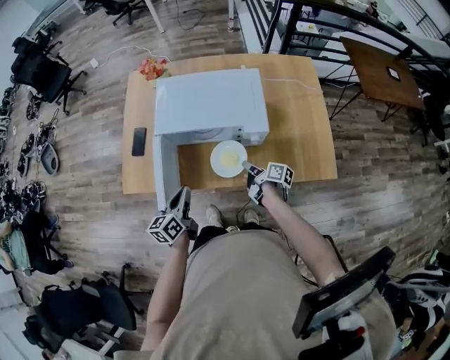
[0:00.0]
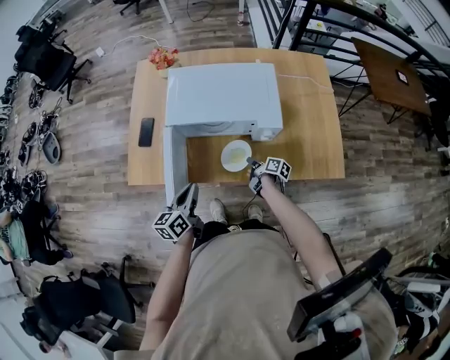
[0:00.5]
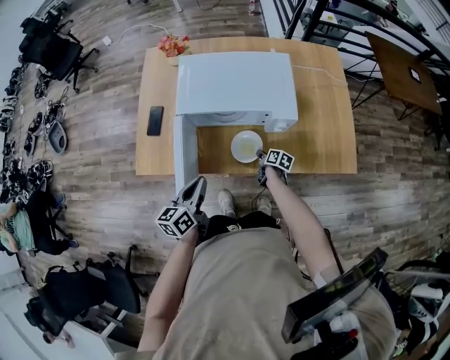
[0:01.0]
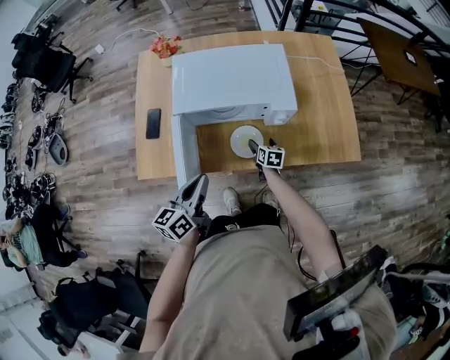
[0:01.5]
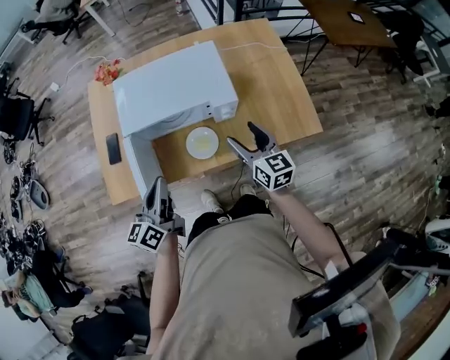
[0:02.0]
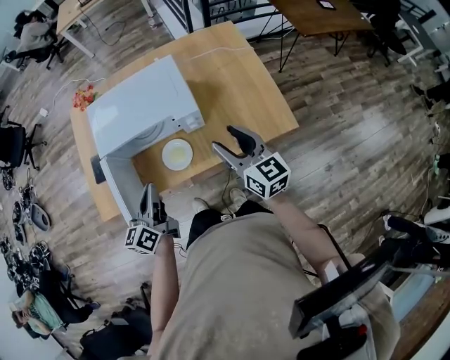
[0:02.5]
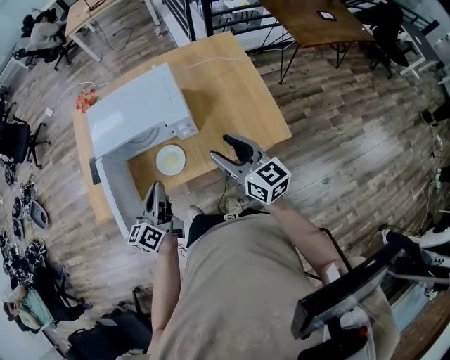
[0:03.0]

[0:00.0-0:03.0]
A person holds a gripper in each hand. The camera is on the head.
0:00.0 to 0:01.5: The right gripper moves downward, roughly 15 cm, rotates some 50 degrees, and opens up.
0:01.5 to 0:03.0: The right gripper shifts about 40 cm upward and to the right, tips its fingers upward by roughly 40 degrees, and closes. Meanwhile the left gripper is displaced to the right by about 15 cm.

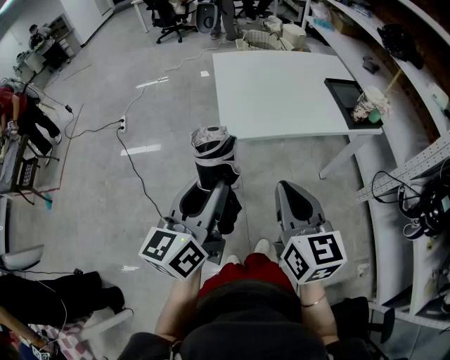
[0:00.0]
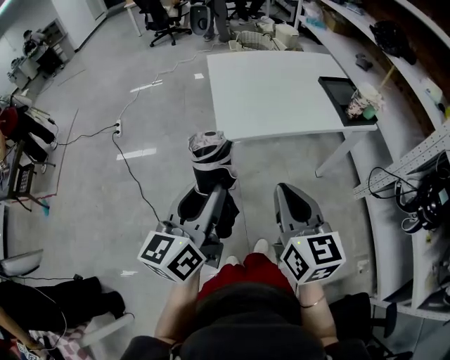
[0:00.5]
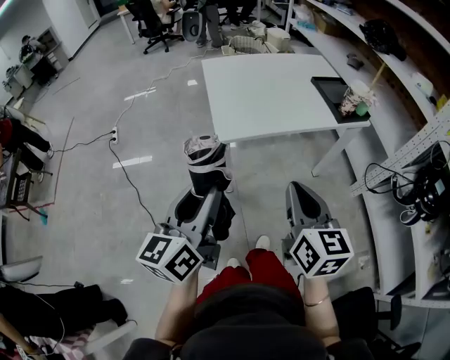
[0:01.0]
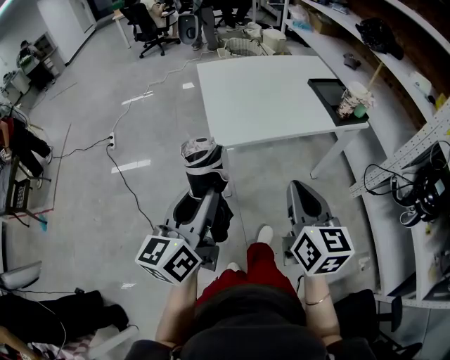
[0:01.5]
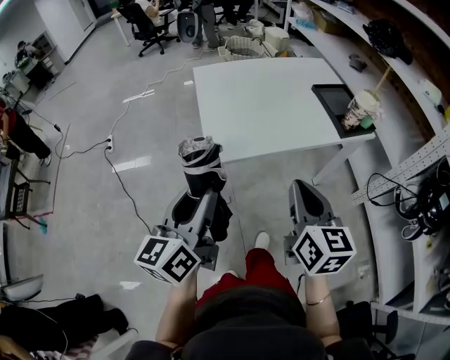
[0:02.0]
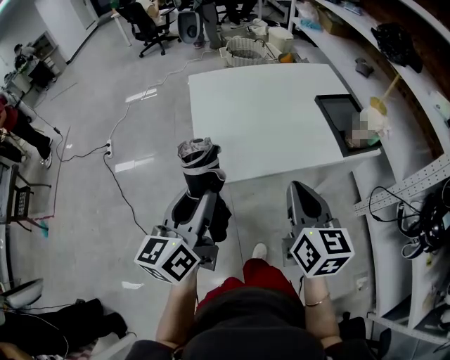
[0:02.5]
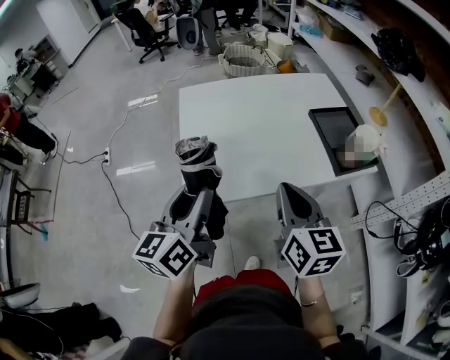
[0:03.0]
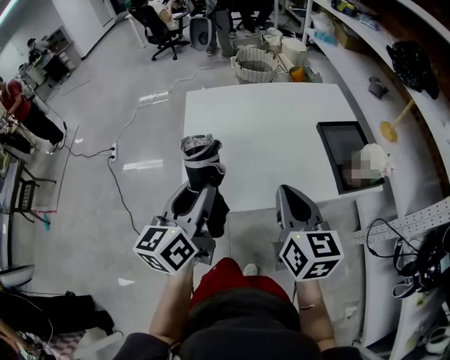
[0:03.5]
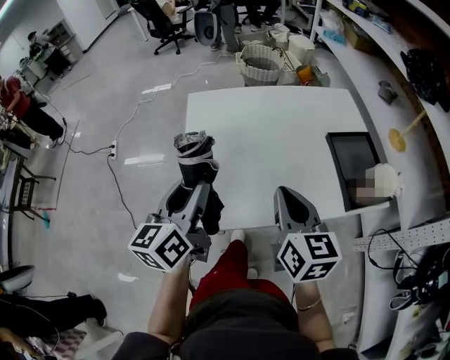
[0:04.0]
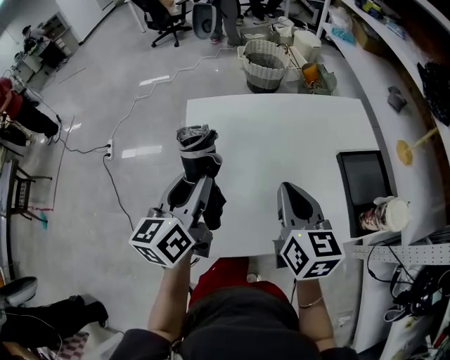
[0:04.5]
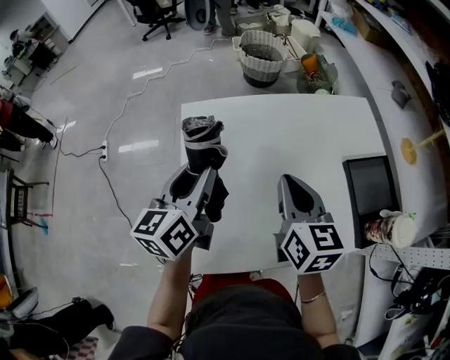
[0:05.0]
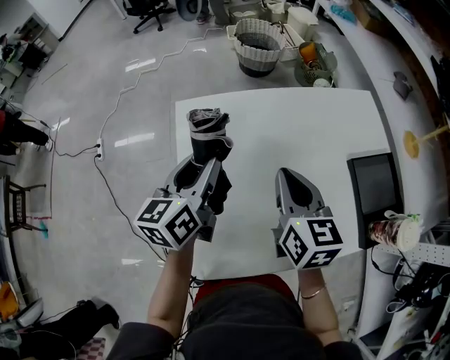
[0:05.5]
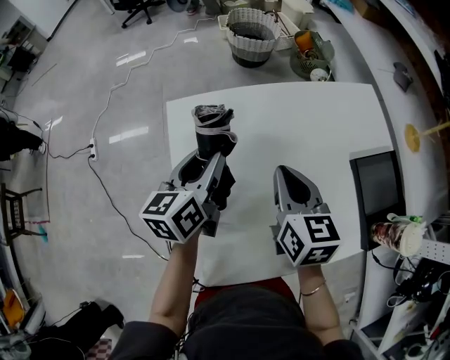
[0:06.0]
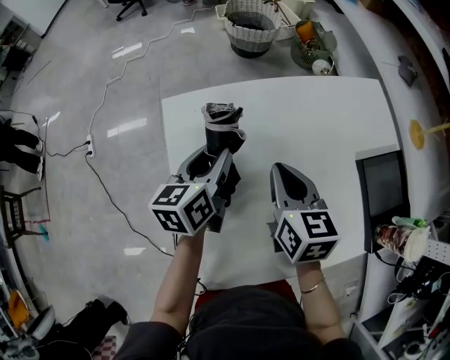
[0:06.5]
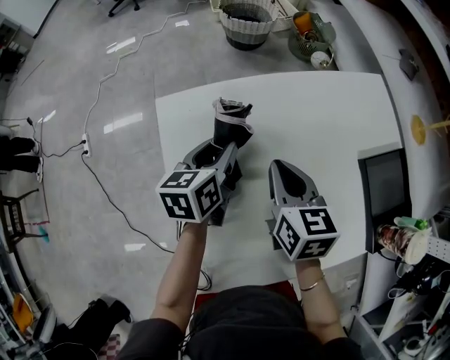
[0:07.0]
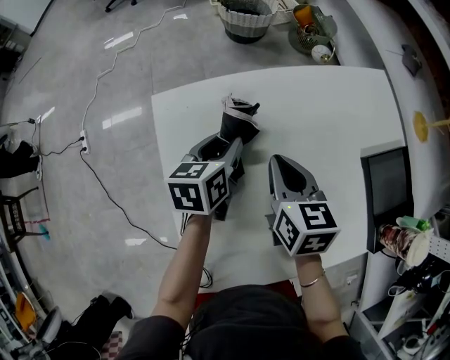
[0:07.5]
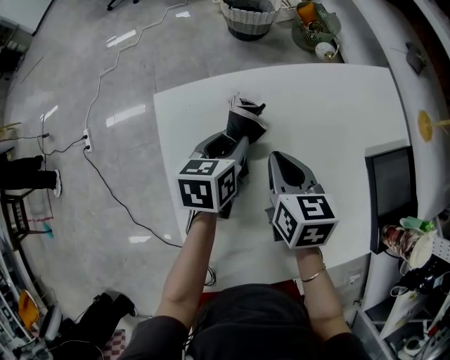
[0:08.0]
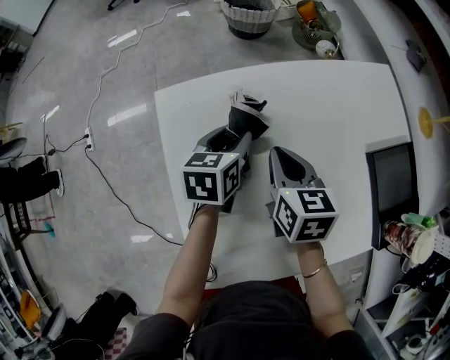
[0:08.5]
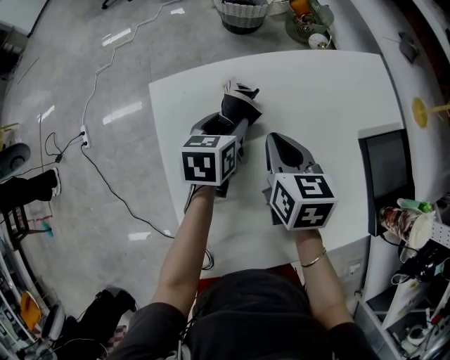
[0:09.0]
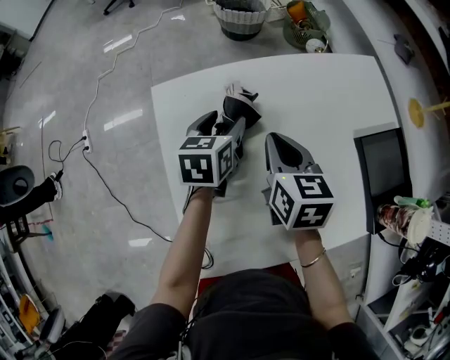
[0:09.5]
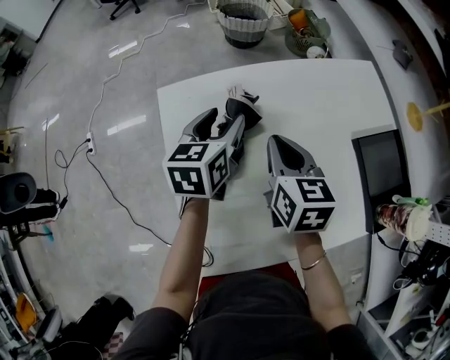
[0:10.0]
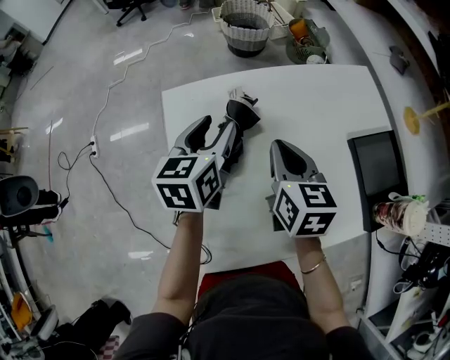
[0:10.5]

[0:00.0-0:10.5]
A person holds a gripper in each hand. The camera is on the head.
0:00.0 to 0:02.0: The left gripper shifts roughly 10 cm forward; the right gripper goes approximately 10 cm forward and to the right.
0:02.0 to 0:04.0: The grippers both shift forward by about 25 cm.
0:04.0 to 0:06.5: The left gripper is displaced forward and downward by some 35 cm, and swivels about 20 degrees, while the right gripper heads forward, covering some 25 cm.
0:06.5 to 0:08.5: The two grippers go some 5 cm downward.
0:08.5 to 0:10.5: The right gripper heads upward, covering approximately 10 cm. The left gripper travels upward by some 10 cm.

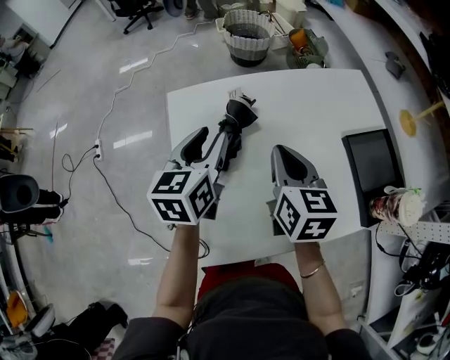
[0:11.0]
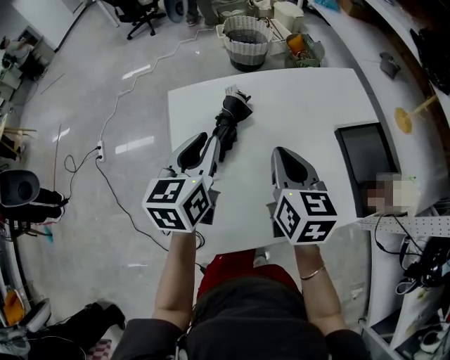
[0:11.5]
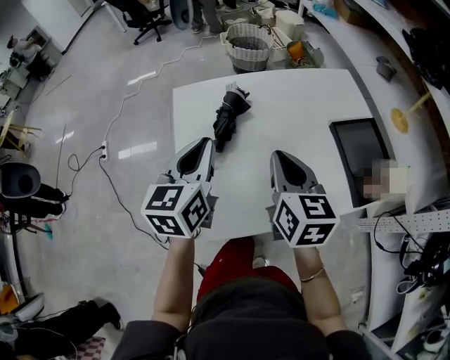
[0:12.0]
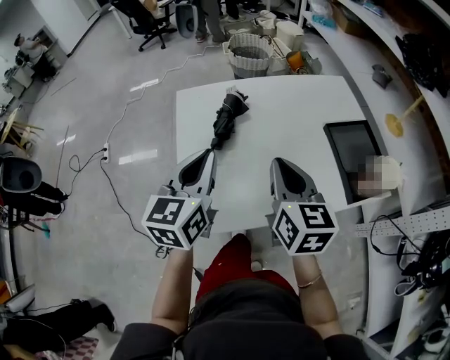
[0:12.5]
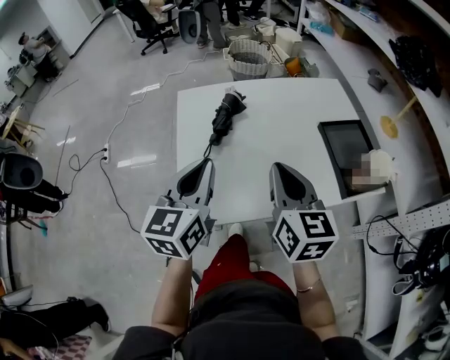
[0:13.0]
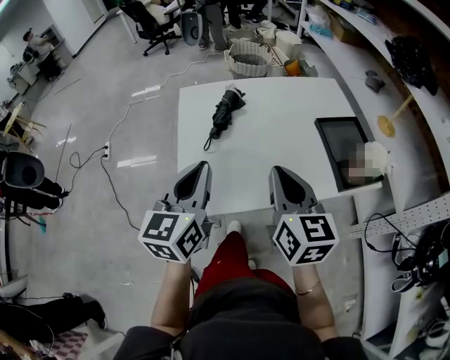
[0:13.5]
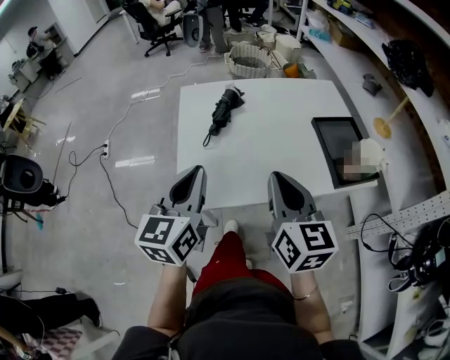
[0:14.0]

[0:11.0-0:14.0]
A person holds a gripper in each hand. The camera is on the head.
0:11.0 to 0:12.5: Both grippers travel together backward, some 15 cm. The left gripper closes.
0:12.5 to 0:14.0: The two grippers go some 15 cm backward.

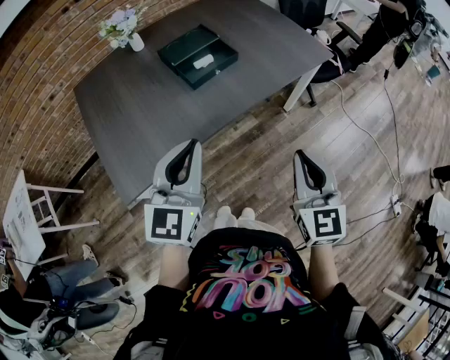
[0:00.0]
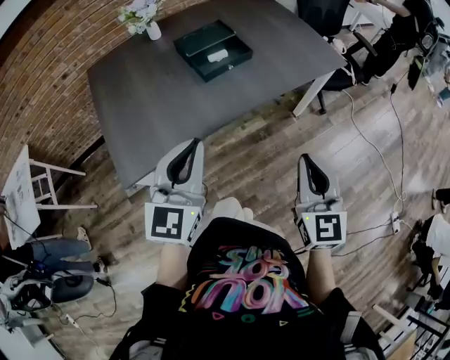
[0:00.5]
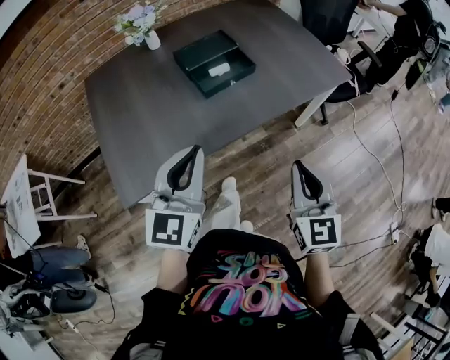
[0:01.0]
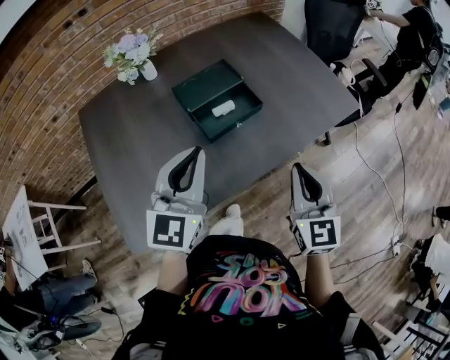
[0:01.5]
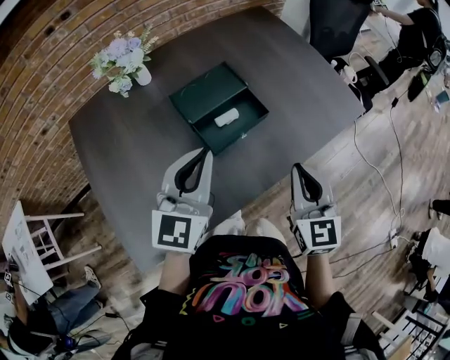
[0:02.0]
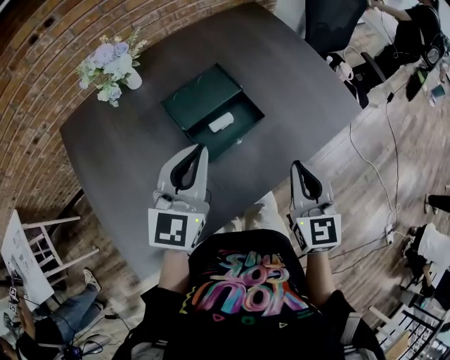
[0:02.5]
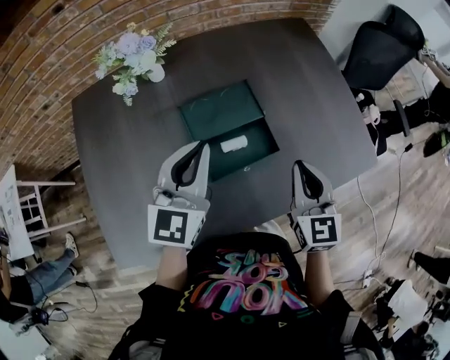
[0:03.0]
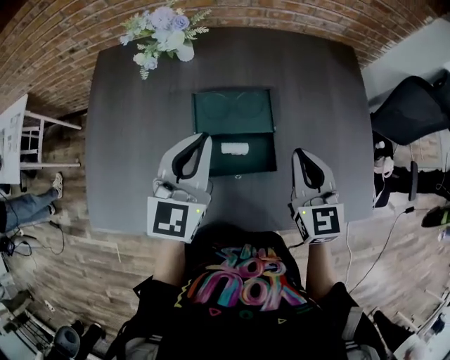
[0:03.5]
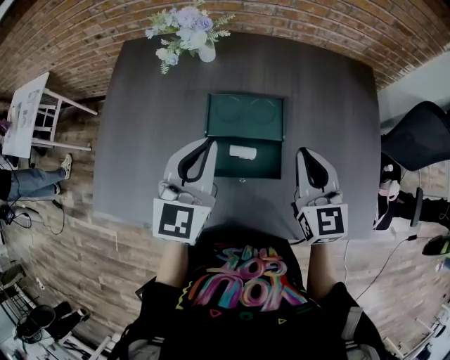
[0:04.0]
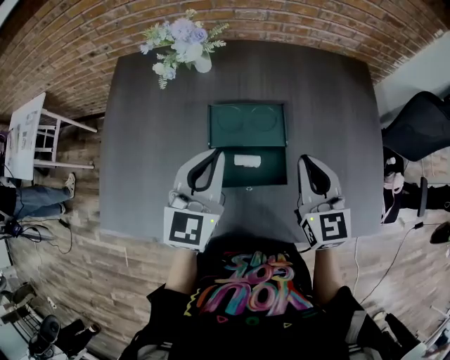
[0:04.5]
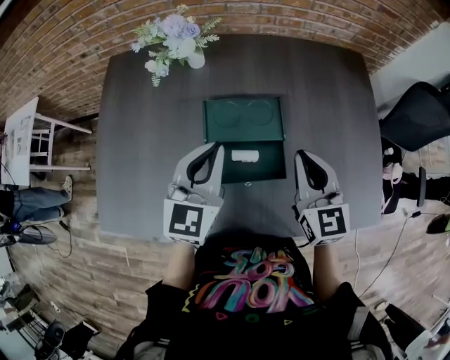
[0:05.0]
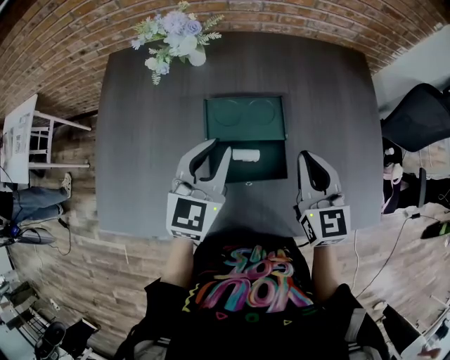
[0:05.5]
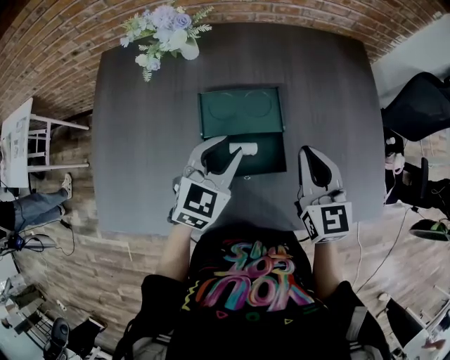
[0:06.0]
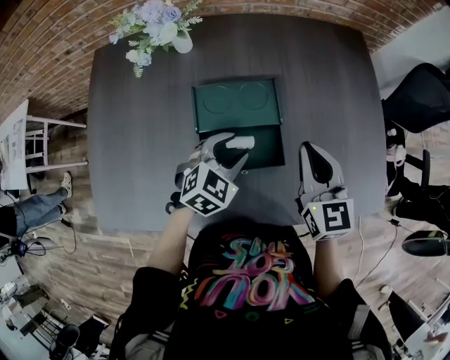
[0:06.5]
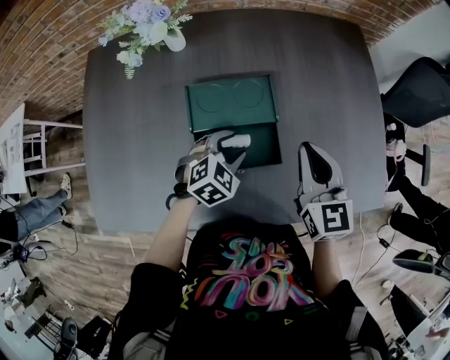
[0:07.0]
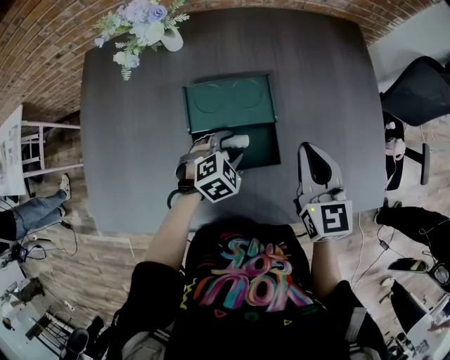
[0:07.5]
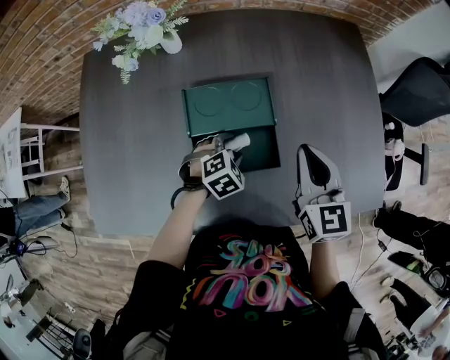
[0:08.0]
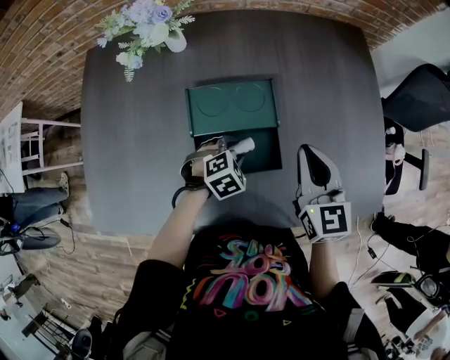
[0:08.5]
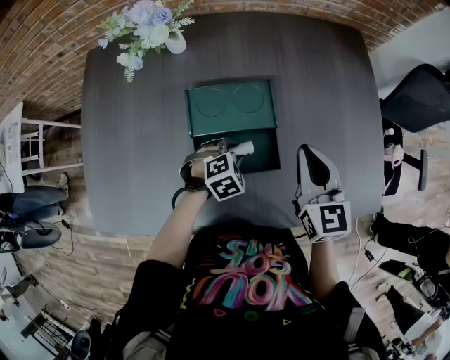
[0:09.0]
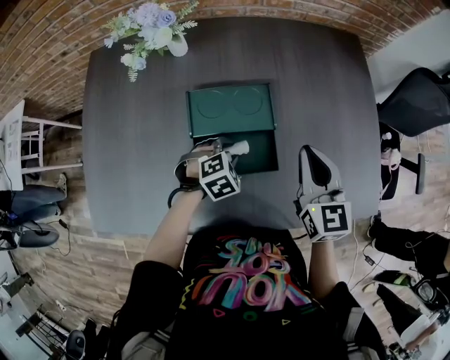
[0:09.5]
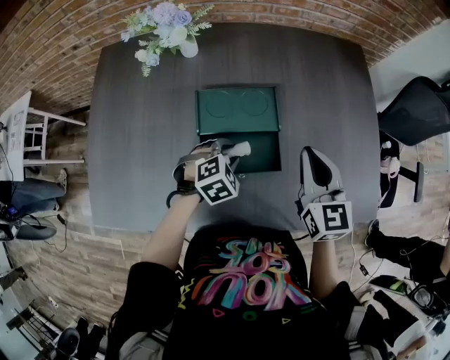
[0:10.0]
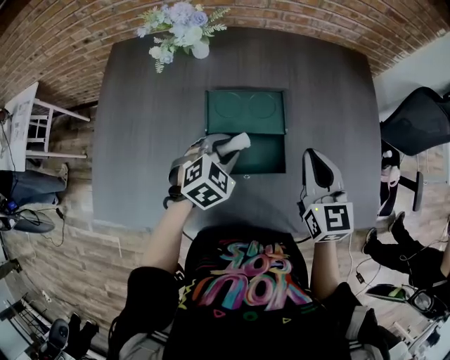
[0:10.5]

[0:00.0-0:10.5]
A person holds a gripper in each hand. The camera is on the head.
0:00.0 to 0:02.0: Both grippers travel together forward, approximately 25 cm.
0:02.0 to 0:04.0: The right gripper shifts by some 25 cm, and changes its angle by about 40 degrees, while the left gripper ends up about 10 cm from where it was, and swivels some 40 degrees.
0:04.0 to 0:06.5: The left gripper heads downward and to the right, covering about 20 cm, swivels about 50 degrees, and opens its fingers.
0:06.5 to 0:08.5: The left gripper moves downward, some 10 cm, and rotates about 20 degrees.
0:08.5 to 0:10.5: The left gripper is displaced upward by roughly 10 cm, and turns by about 20 degrees.
